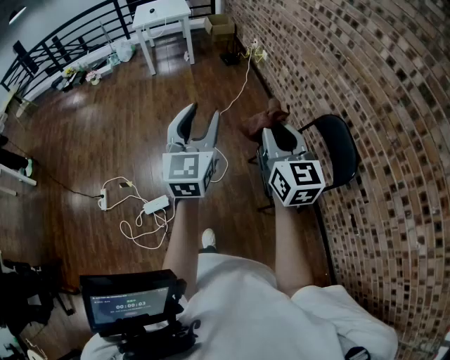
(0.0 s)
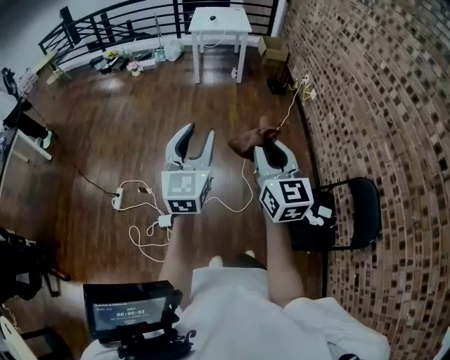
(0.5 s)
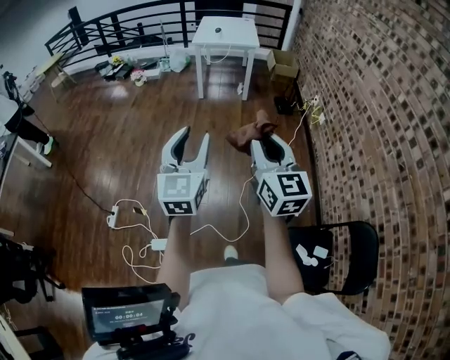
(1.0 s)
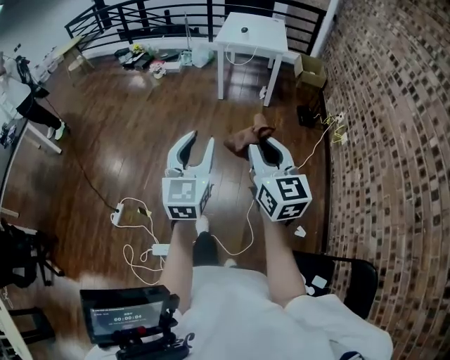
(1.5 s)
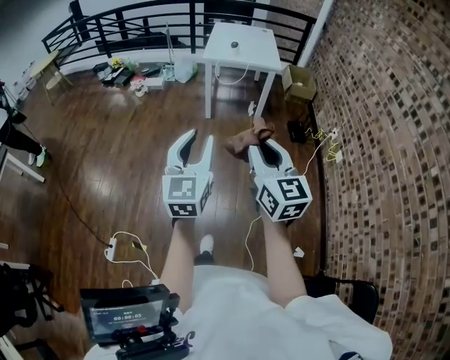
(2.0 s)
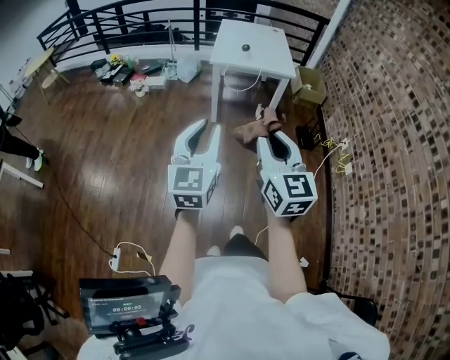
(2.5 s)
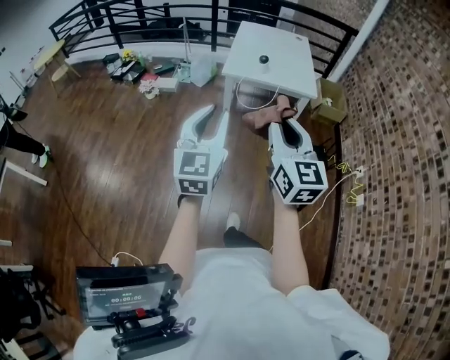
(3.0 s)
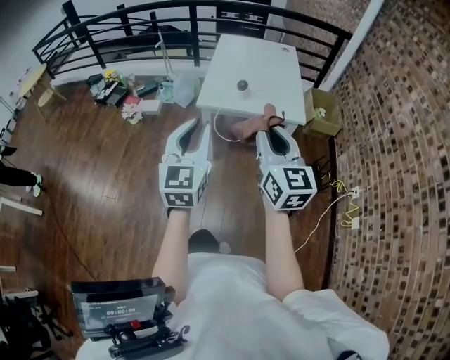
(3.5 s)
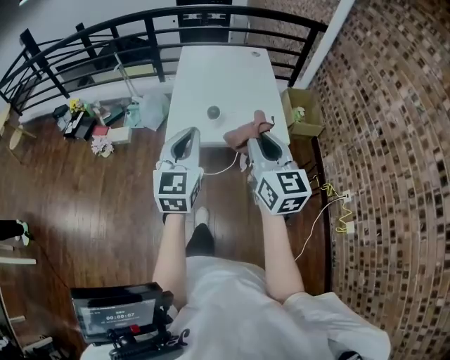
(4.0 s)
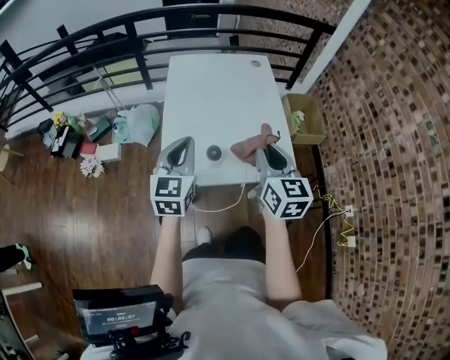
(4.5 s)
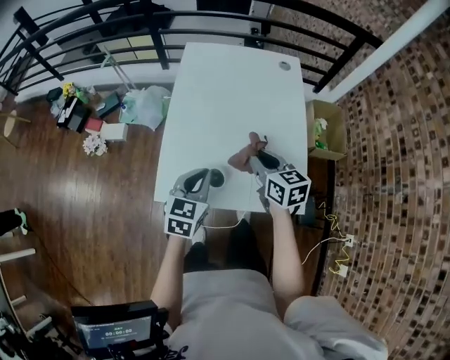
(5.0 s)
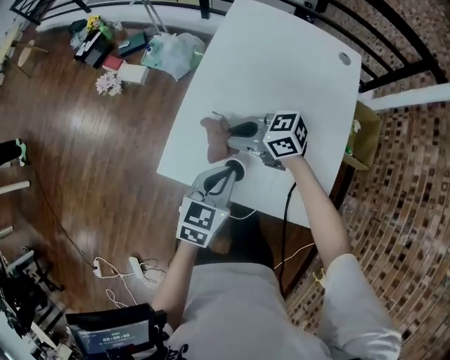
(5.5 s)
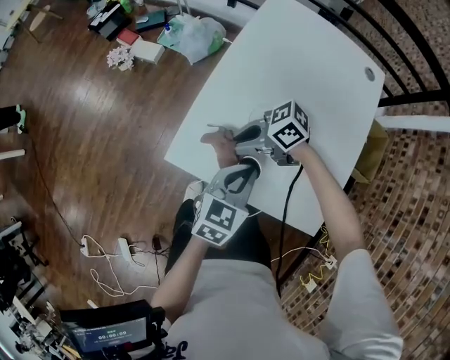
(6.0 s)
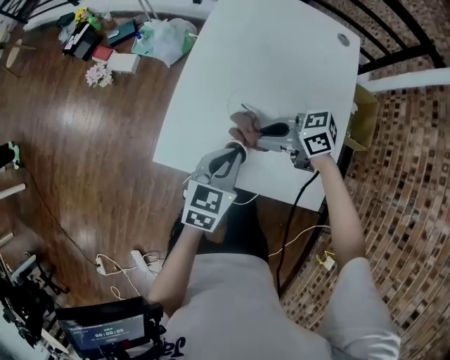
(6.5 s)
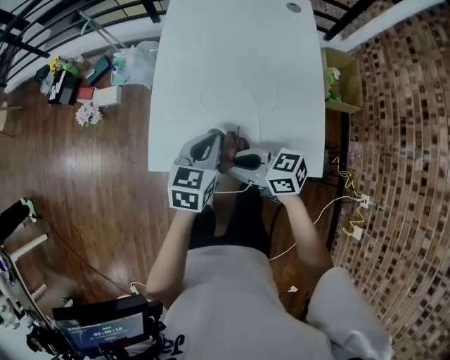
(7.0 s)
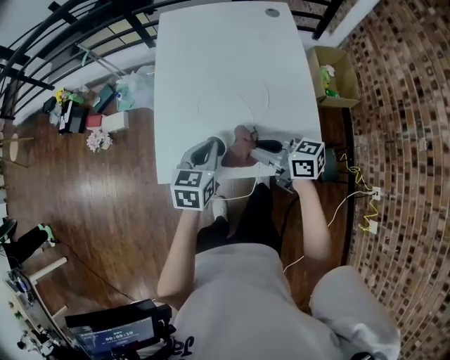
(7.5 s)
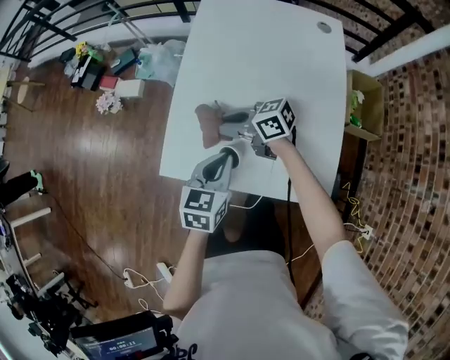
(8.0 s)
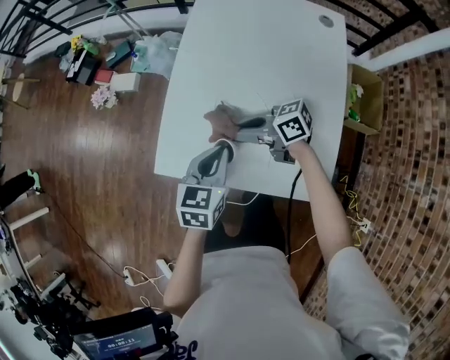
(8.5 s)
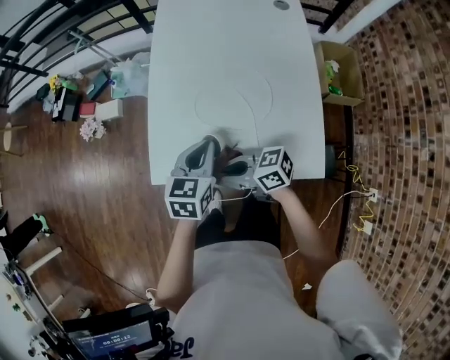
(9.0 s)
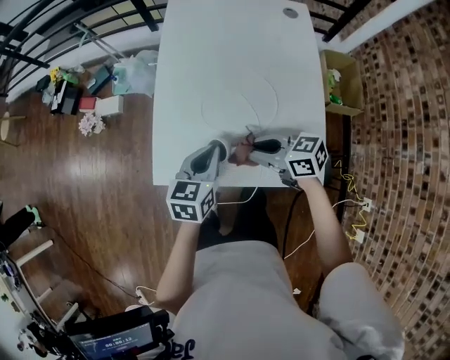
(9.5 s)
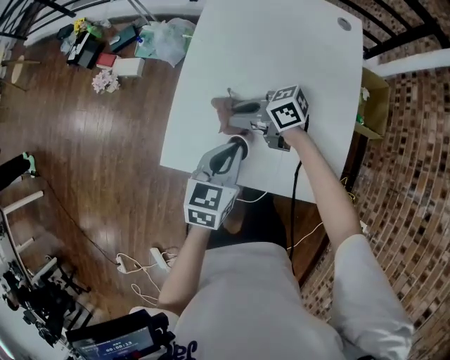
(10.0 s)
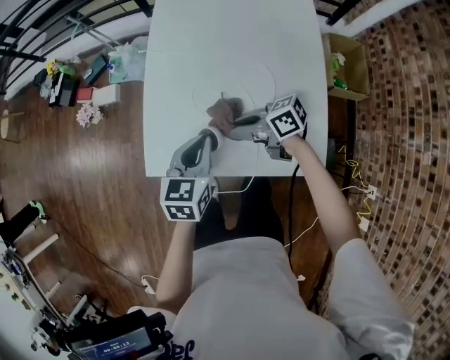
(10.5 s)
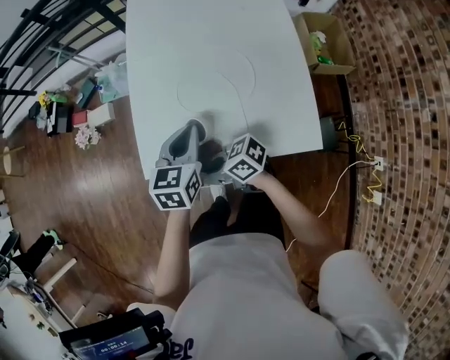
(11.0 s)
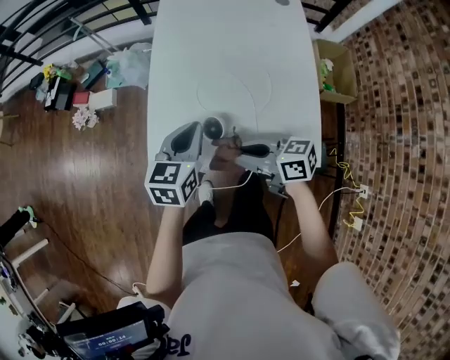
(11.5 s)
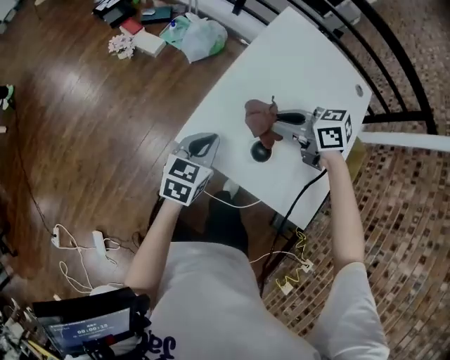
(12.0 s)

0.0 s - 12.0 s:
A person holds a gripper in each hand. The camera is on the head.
0.0 s - 2.0 s: The two grippers travel together, forward, about 70 cm. The right gripper changes its angle by roughly 20 degrees.
2.0 s - 4.0 s: The two grippers travel together, forward, about 80 cm. The left gripper closes up.
4.0 s - 6.0 s: The left gripper moves approximately 40 cm, and changes its angle by roughly 40 degrees, while the right gripper moves roughly 50 cm, and turns by roughly 120 degrees.
6.0 s - 8.0 s: The right gripper rotates some 40 degrees.
8.0 s - 10.0 s: The right gripper reaches approximately 15 cm backward, then returns.
10.0 s - 12.0 s: The left gripper goes approximately 10 cm to the left, while the right gripper goes approximately 10 cm upward, moves about 20 cm backward and comes back, and rotates approximately 20 degrees.

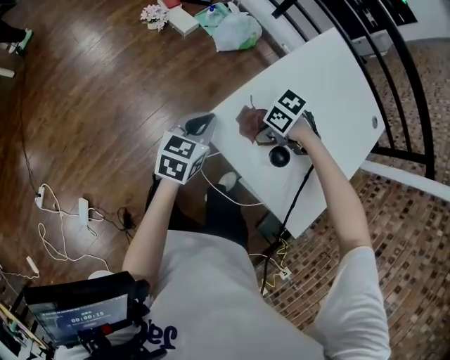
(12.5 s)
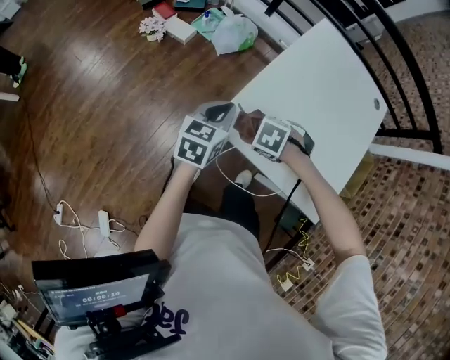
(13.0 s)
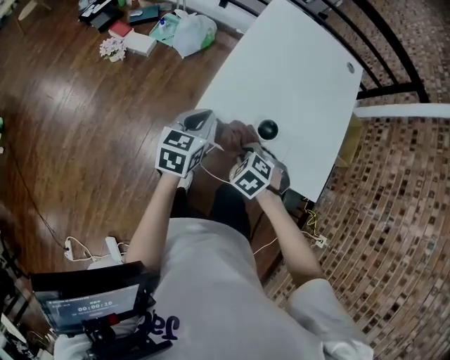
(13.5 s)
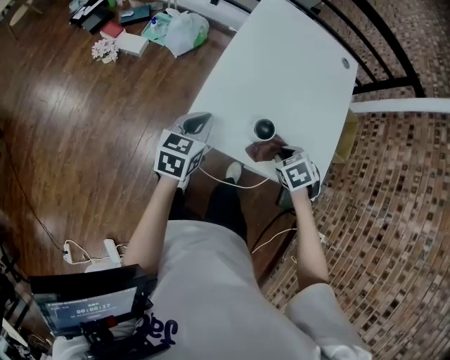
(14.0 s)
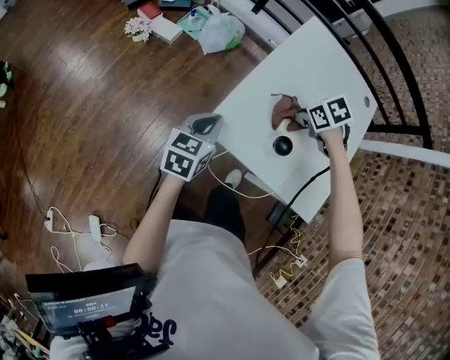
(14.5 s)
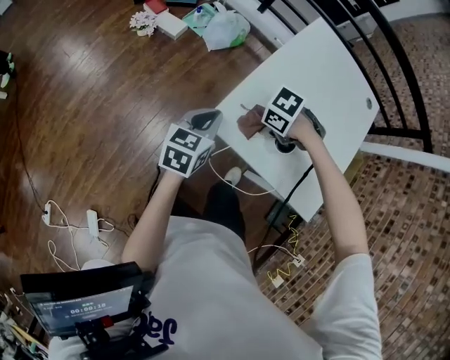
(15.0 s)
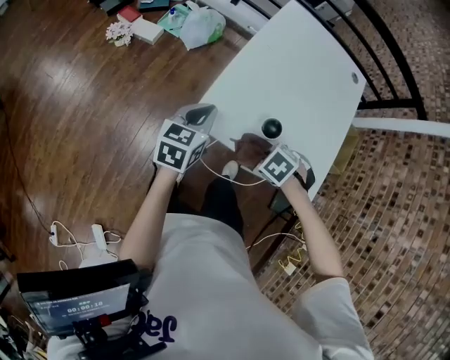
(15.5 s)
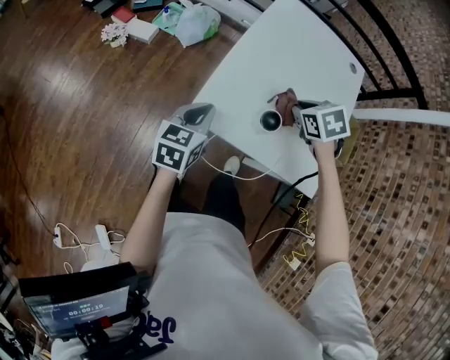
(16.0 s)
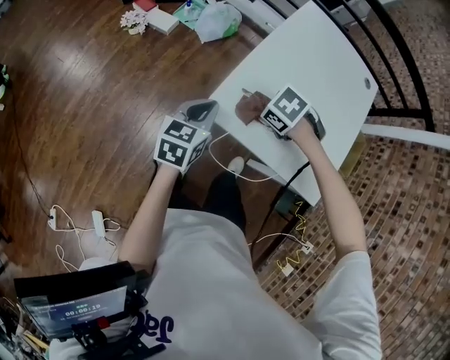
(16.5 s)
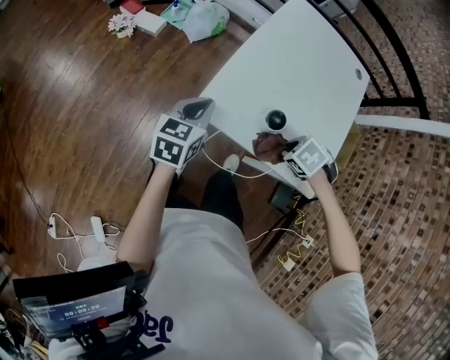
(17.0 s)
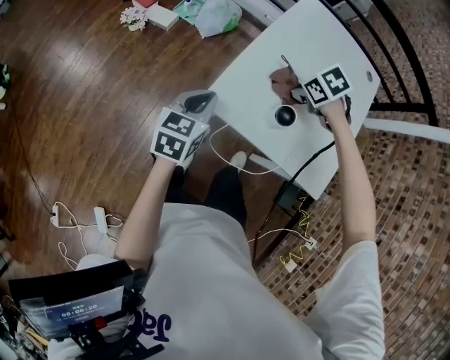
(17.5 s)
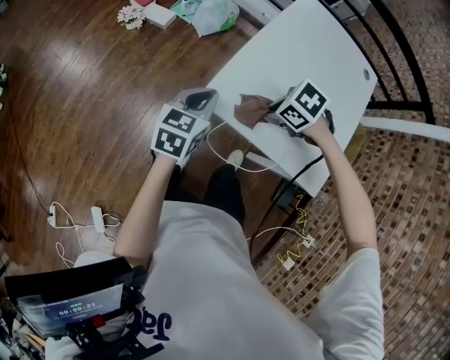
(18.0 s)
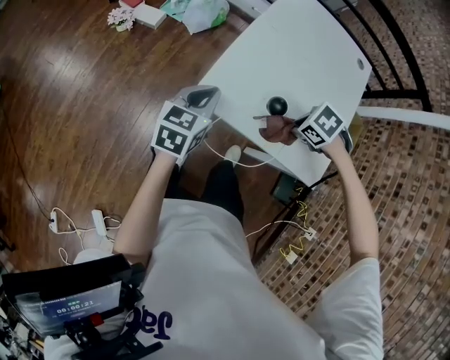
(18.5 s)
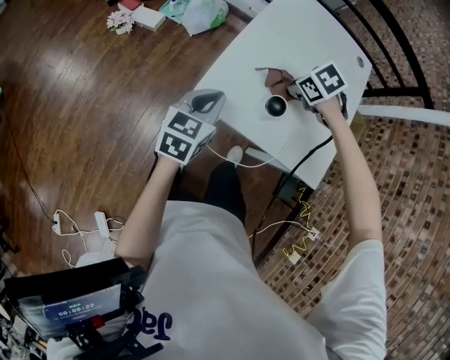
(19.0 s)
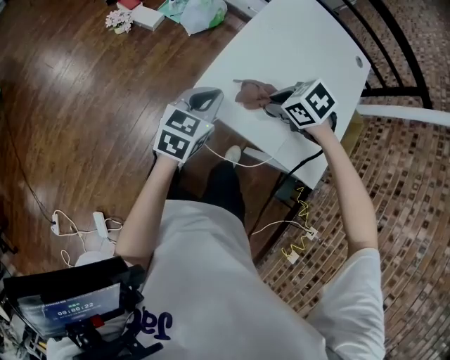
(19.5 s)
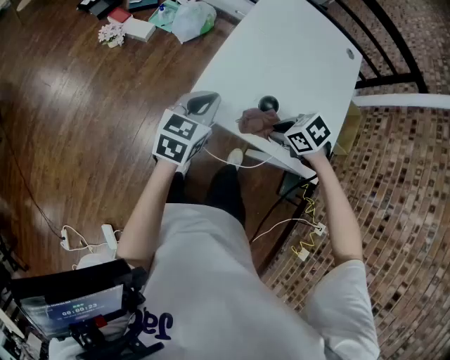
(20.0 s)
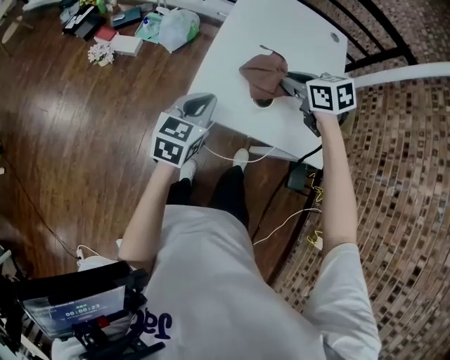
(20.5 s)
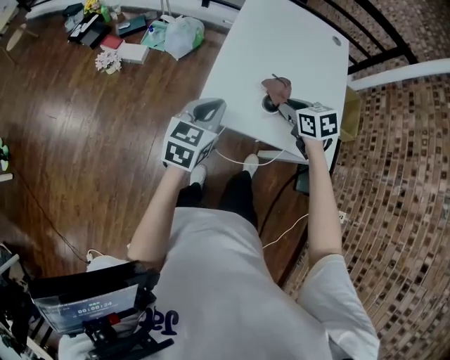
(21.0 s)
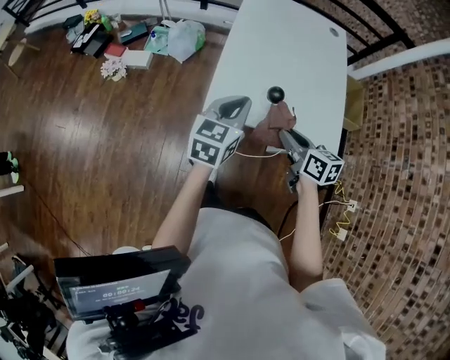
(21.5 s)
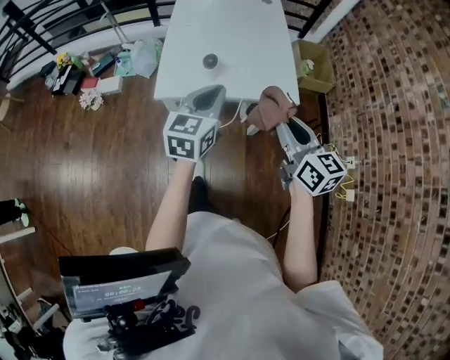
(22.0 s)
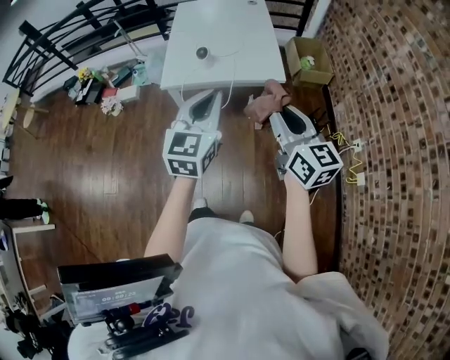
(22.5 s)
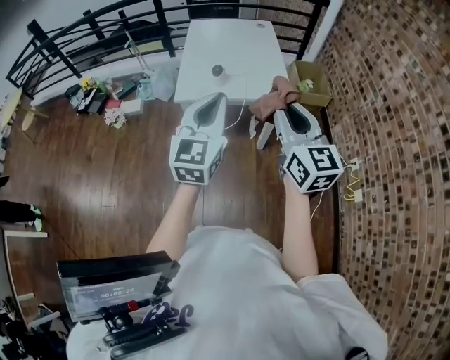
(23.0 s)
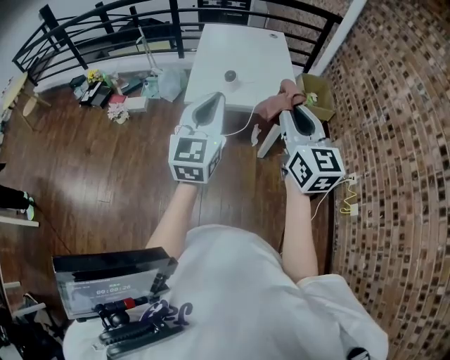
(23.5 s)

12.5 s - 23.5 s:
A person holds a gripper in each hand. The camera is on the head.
12.5 s - 14.5 s: The right gripper shifts by roughly 15 cm, and turns by some 40 degrees.
16.0 s - 18.0 s: The right gripper shifts by roughly 15 cm, and swivels about 40 degrees.
18.0 s - 20.0 s: The right gripper ends up roughly 10 cm from where it was, and changes its angle by roughly 20 degrees.
20.0 s - 21.5 s: The left gripper travels upward by some 10 cm. The right gripper goes up and down, some 10 cm each way, reversing 2 times, and tilts its fingers some 40 degrees upward.
21.5 s - 23.5 s: The right gripper travels upward and backward by about 40 cm, and tilts its fingers approximately 30 degrees upward. Meanwhile the left gripper travels backward and upward by roughly 35 cm, and changes its angle by roughly 30 degrees.

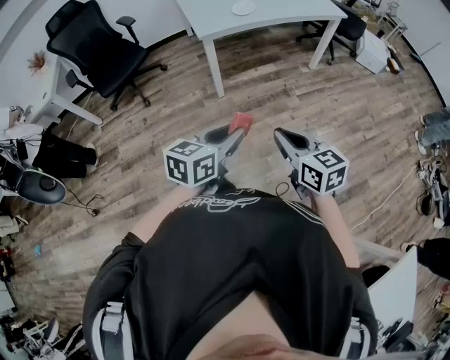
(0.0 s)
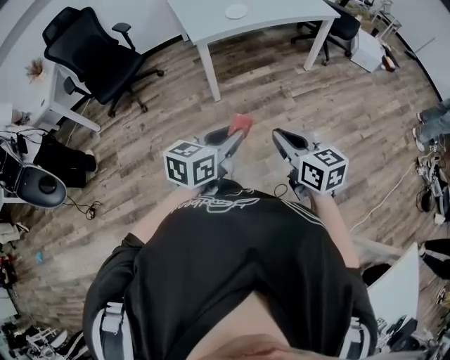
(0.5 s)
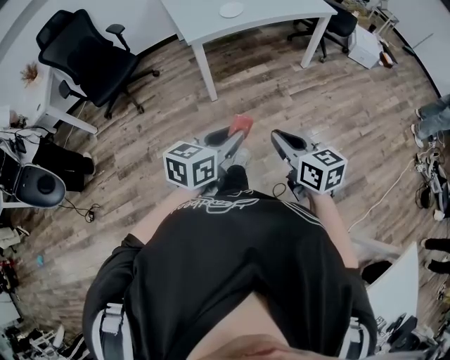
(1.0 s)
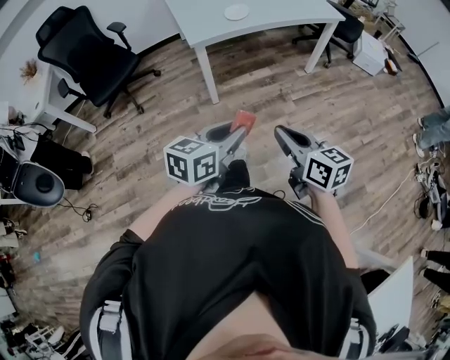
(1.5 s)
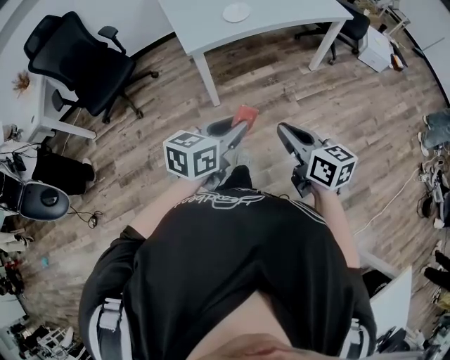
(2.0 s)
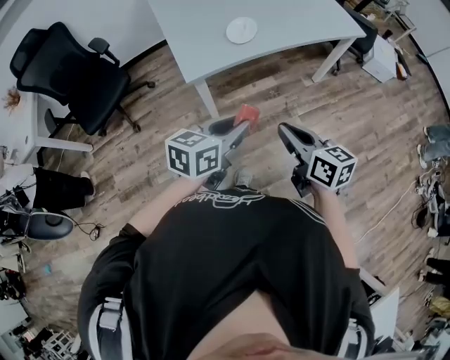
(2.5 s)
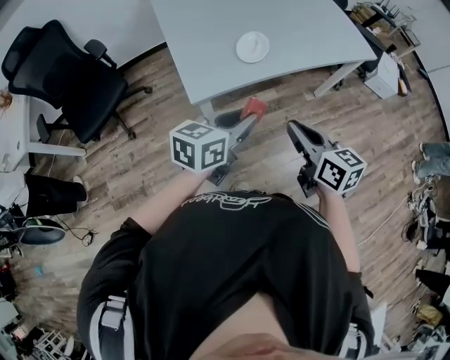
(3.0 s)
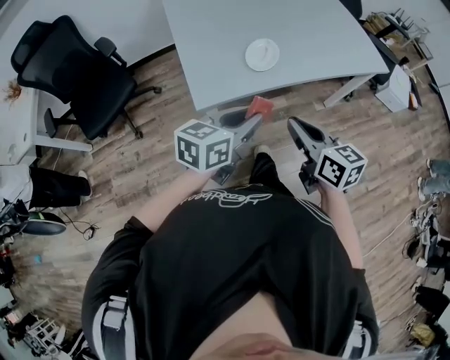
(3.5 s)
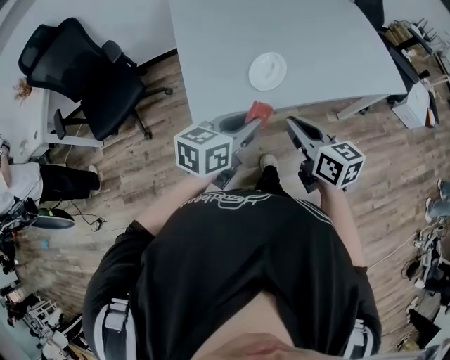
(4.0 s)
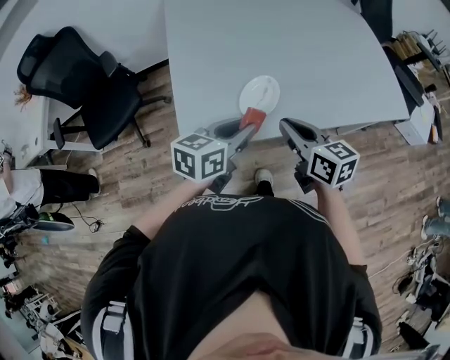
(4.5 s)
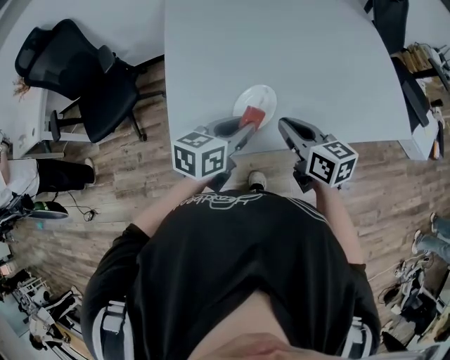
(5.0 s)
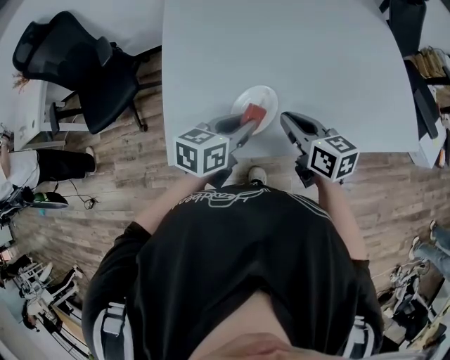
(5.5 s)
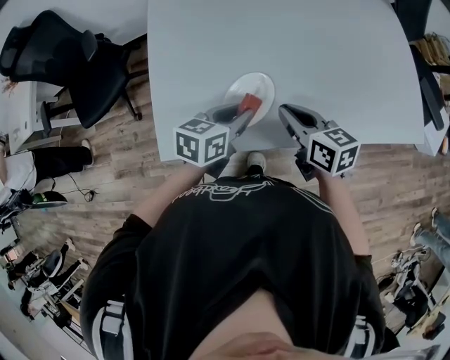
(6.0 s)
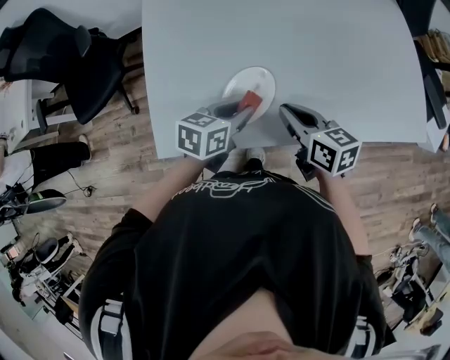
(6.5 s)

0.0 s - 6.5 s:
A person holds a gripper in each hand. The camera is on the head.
0.0 s - 2.0 s: The two grippers go about 15 cm forward.
2.0 s - 4.5 s: The two grippers travel together, forward, approximately 50 cm.
4.5 s - 6.5 s: The left gripper moves downward and forward, about 20 cm; the right gripper heads forward and downward, covering roughly 15 cm.
